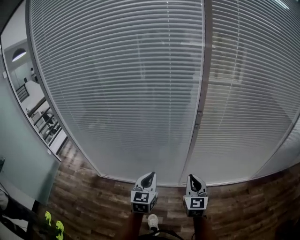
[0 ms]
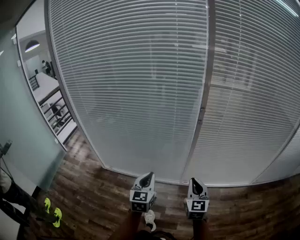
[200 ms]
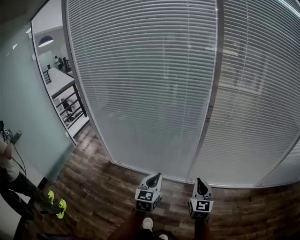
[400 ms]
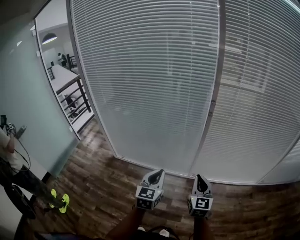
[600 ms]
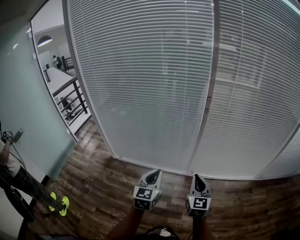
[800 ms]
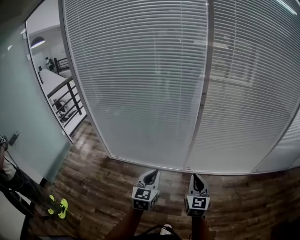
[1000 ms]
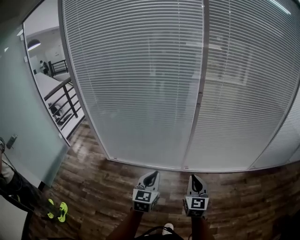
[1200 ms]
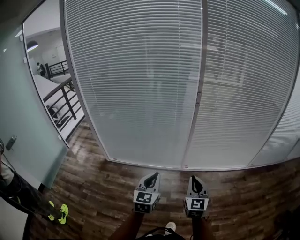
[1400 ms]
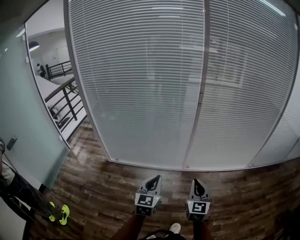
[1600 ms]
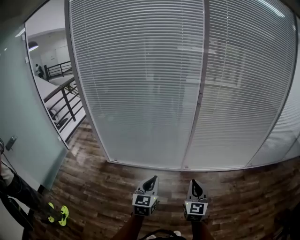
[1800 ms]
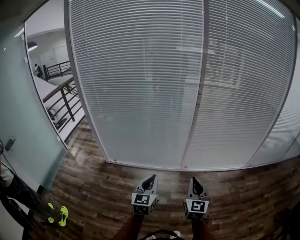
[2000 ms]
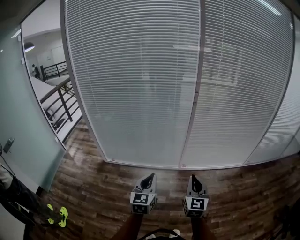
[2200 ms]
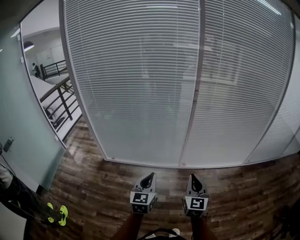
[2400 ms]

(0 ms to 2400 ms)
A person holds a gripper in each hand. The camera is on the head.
0 ms - 1200 ms: Both grippers move backward, about 25 cm.
1200 ms - 2400 ms: Both grippers move backward, approximately 5 cm.

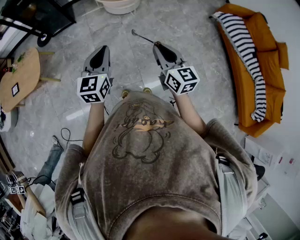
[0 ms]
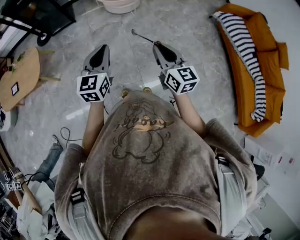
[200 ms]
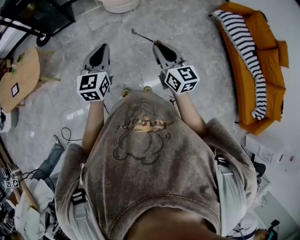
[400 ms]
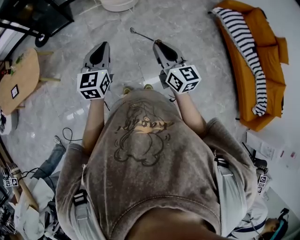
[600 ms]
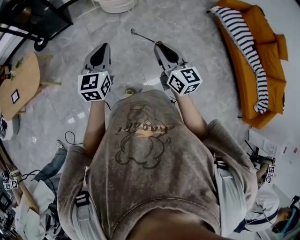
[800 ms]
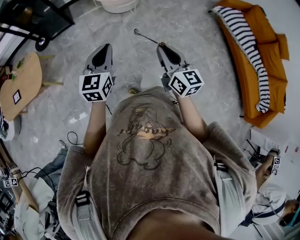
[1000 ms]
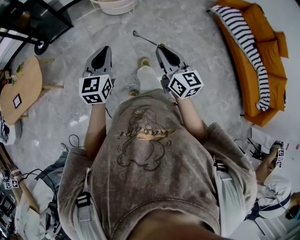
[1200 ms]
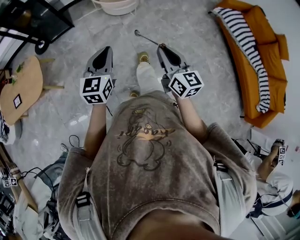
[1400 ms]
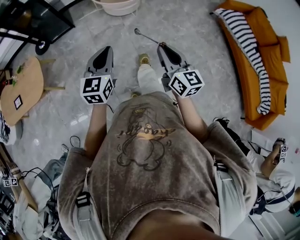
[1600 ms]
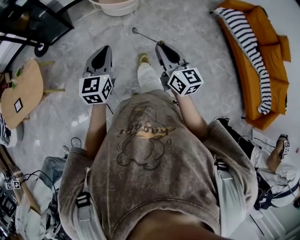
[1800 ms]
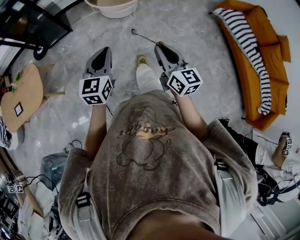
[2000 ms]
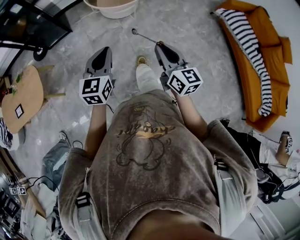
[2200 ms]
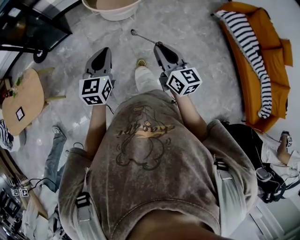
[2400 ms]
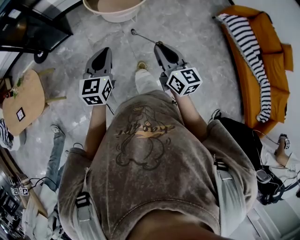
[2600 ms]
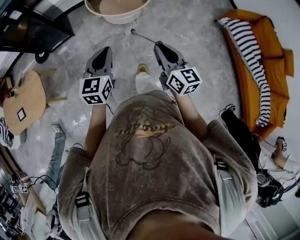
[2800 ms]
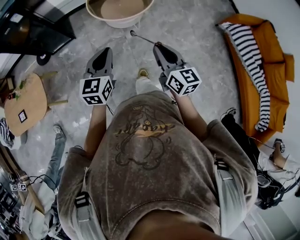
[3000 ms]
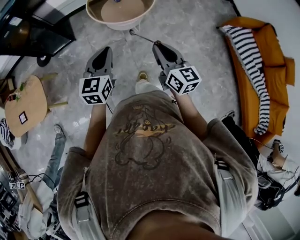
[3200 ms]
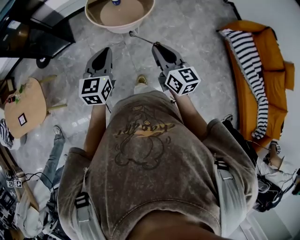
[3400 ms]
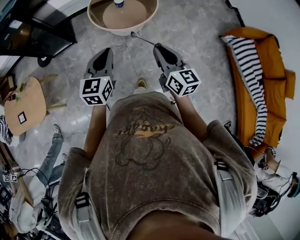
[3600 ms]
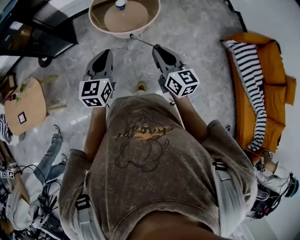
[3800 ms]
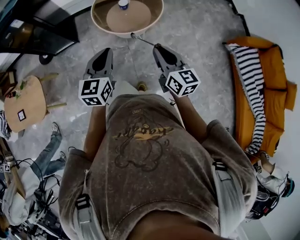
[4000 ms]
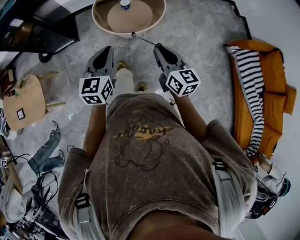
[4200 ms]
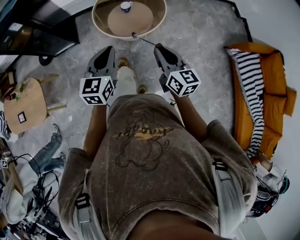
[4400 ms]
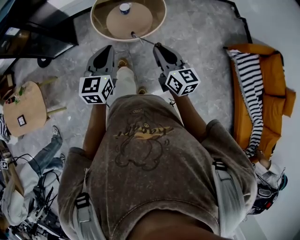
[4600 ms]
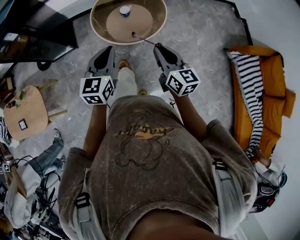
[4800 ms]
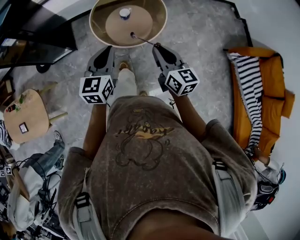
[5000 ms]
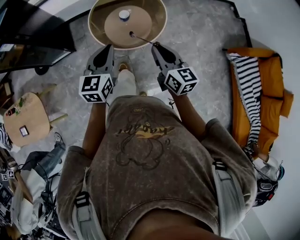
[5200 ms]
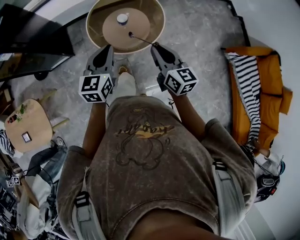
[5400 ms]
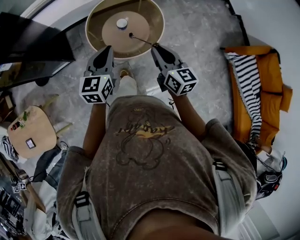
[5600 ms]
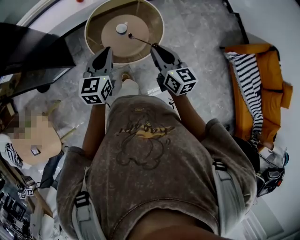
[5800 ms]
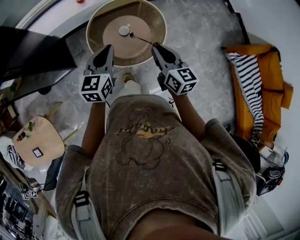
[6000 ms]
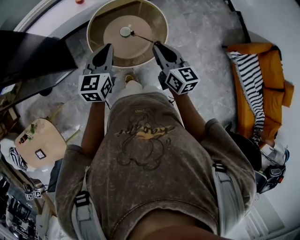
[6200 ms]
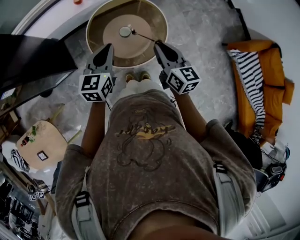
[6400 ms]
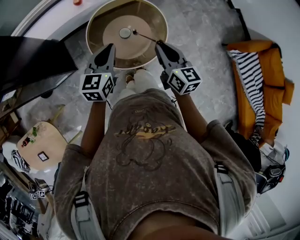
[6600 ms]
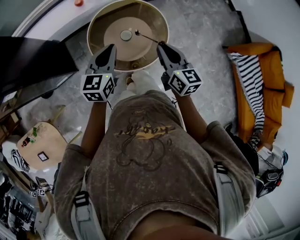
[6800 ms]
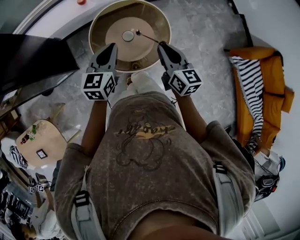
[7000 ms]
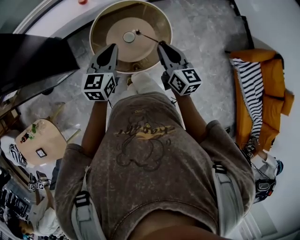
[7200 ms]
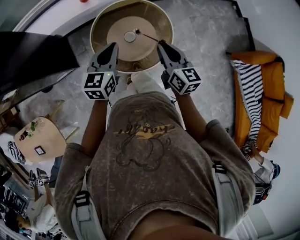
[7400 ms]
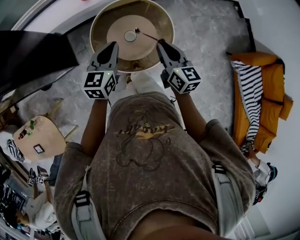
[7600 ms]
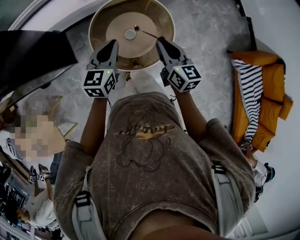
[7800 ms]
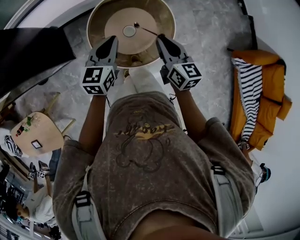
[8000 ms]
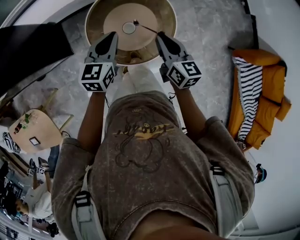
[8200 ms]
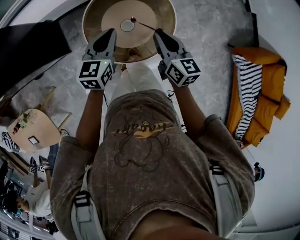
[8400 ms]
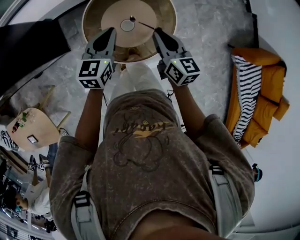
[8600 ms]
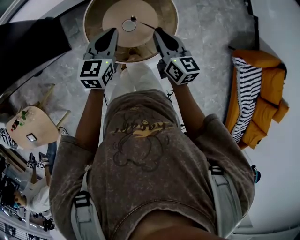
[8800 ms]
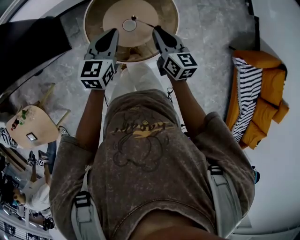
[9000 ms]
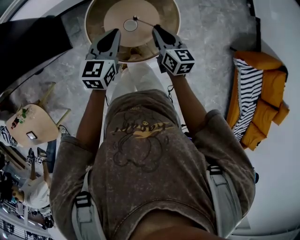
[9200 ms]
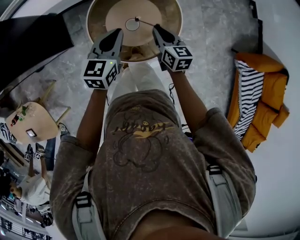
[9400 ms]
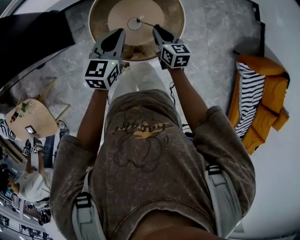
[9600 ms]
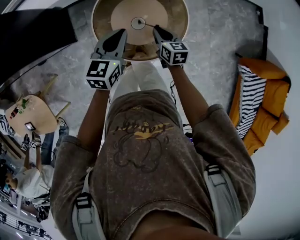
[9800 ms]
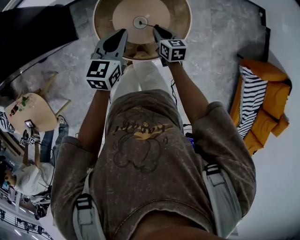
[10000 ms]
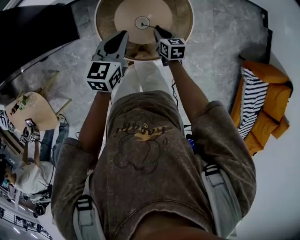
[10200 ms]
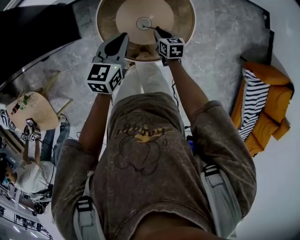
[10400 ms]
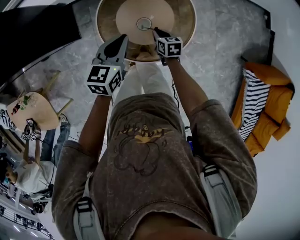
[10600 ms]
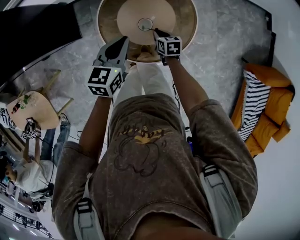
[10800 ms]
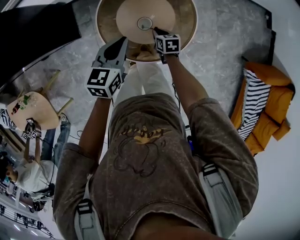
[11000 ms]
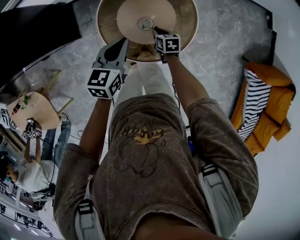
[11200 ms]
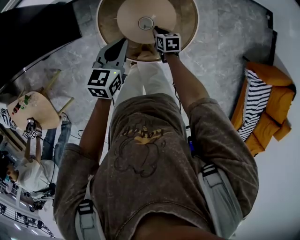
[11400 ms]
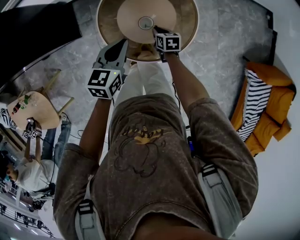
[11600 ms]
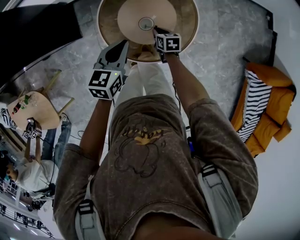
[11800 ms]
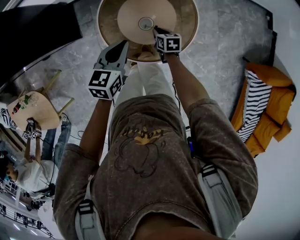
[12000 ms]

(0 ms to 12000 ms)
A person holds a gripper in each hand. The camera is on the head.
0 ms - 1600 ms: The left gripper travels forward and to the left by some 10 cm, while the right gripper travels to the left and forward by roughly 10 cm.
1600 ms - 3000 ms: The grippers both shift forward by roughly 20 cm.
3000 ms - 4400 ms: The two grippers go approximately 15 cm forward.
4400 ms - 6000 ms: Both grippers move forward, some 30 cm.
6000 ms - 7600 ms: The grippers both shift forward by roughly 10 cm.
7600 ms - 9000 ms: The left gripper moves downward, about 5 cm, while the right gripper shifts some 10 cm downward and forward.
9000 ms - 10400 ms: The right gripper is displaced downward by approximately 20 cm, and turns by approximately 30 degrees.
10400 ms - 12000 ms: The grippers make only small movements.

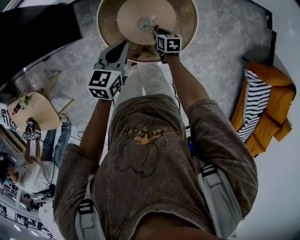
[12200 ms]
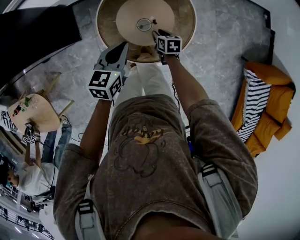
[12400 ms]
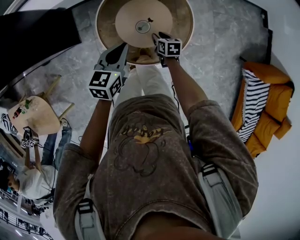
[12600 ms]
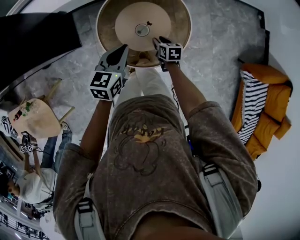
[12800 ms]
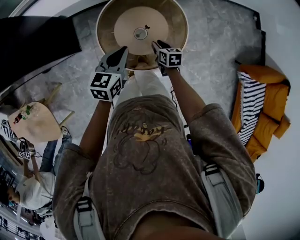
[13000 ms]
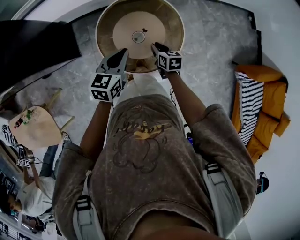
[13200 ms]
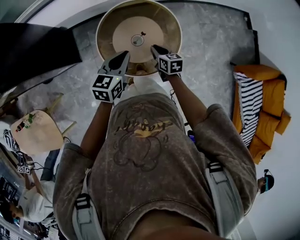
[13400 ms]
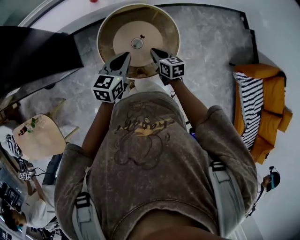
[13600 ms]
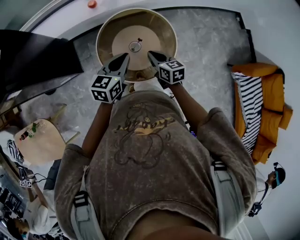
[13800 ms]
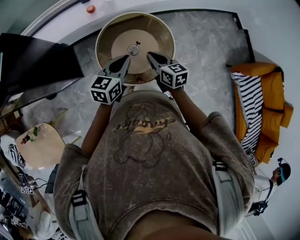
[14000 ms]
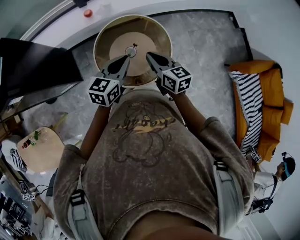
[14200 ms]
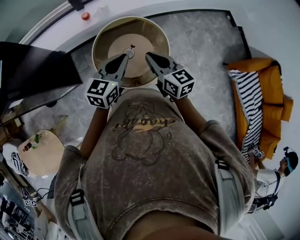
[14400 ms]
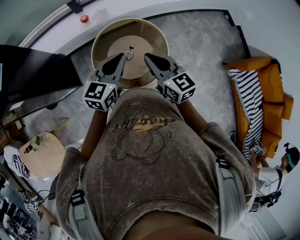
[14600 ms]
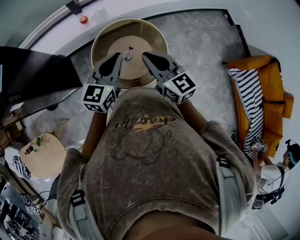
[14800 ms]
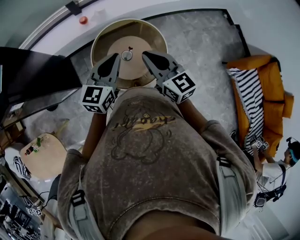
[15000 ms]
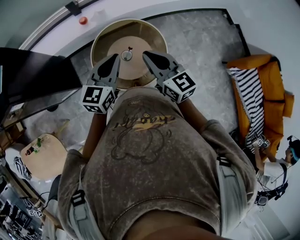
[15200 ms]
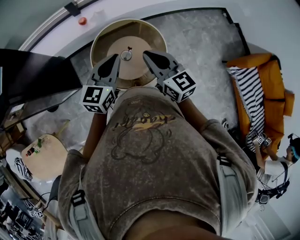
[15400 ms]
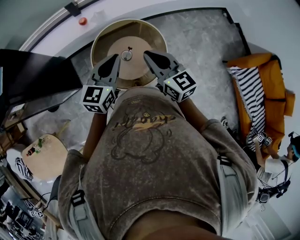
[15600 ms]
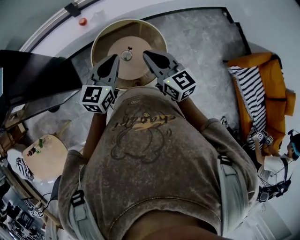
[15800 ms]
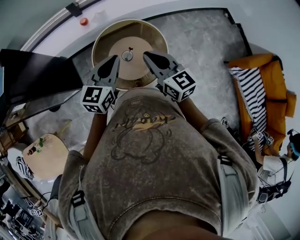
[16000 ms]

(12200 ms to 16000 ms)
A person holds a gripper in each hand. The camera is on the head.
12200 ms - 13400 ms: The right gripper heads upward, covering some 15 cm. The left gripper heads upward, covering approximately 5 cm.
13400 ms - 14800 ms: The left gripper goes approximately 15 cm upward, and turns by approximately 20 degrees. The right gripper heads upward, covering approximately 30 cm, and tilts its fingers approximately 30 degrees upward.
14800 ms - 16000 ms: There are only small adjustments of the grippers.

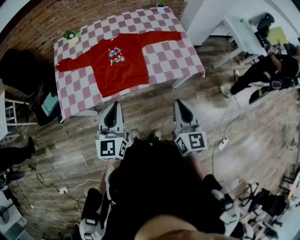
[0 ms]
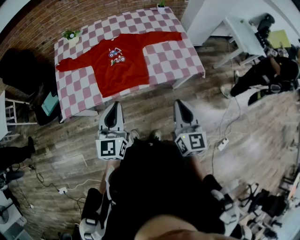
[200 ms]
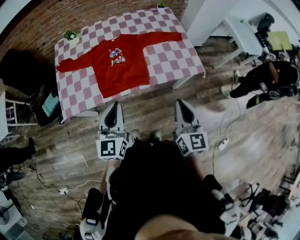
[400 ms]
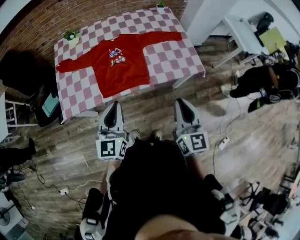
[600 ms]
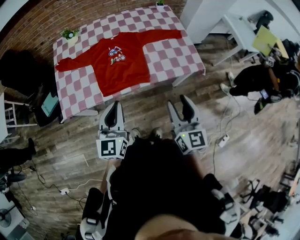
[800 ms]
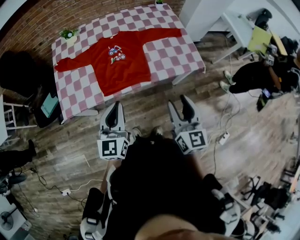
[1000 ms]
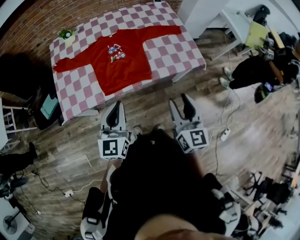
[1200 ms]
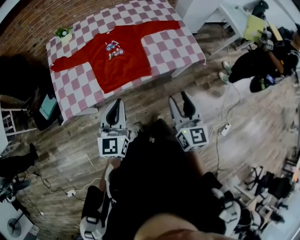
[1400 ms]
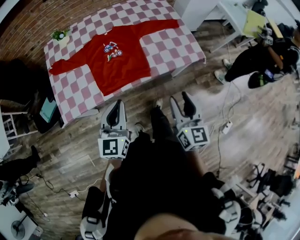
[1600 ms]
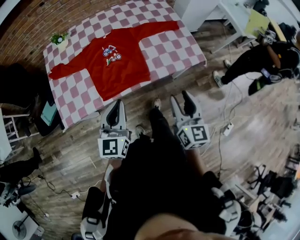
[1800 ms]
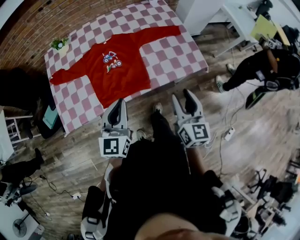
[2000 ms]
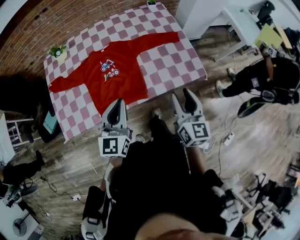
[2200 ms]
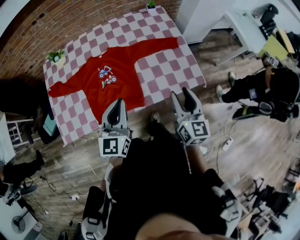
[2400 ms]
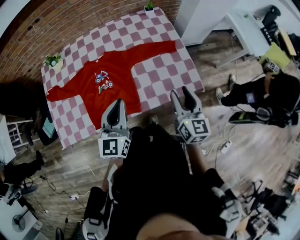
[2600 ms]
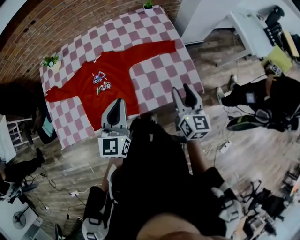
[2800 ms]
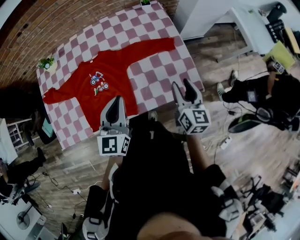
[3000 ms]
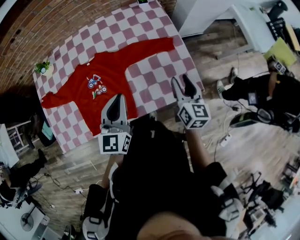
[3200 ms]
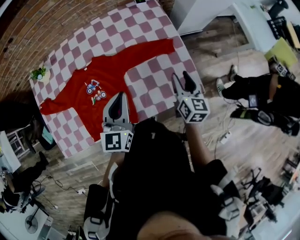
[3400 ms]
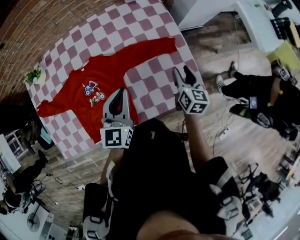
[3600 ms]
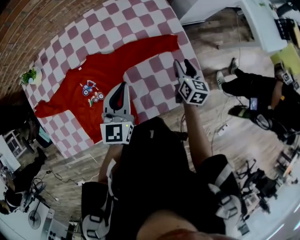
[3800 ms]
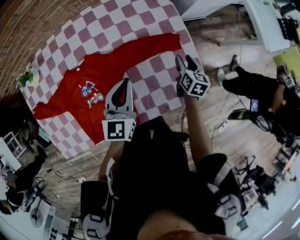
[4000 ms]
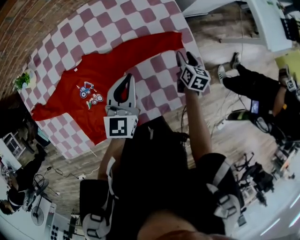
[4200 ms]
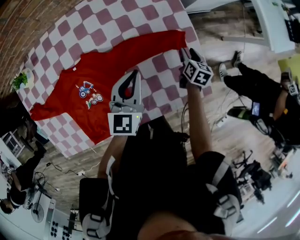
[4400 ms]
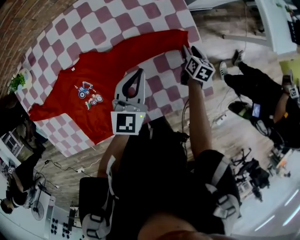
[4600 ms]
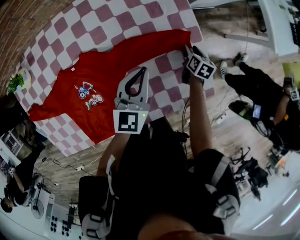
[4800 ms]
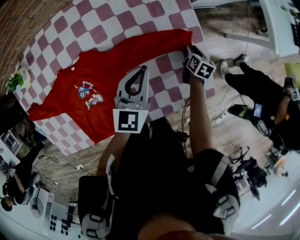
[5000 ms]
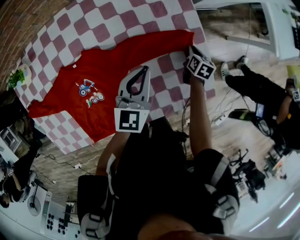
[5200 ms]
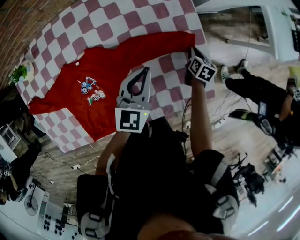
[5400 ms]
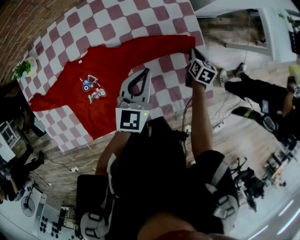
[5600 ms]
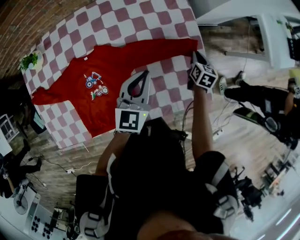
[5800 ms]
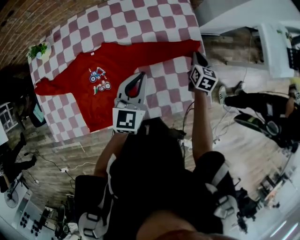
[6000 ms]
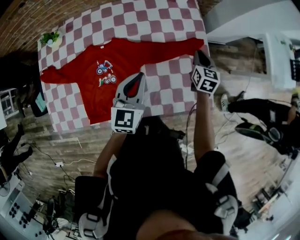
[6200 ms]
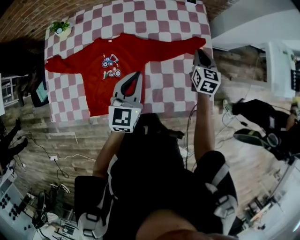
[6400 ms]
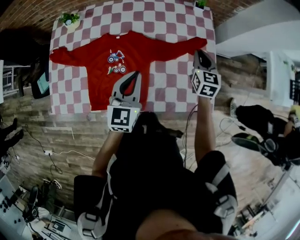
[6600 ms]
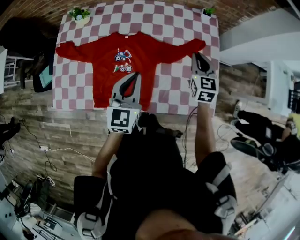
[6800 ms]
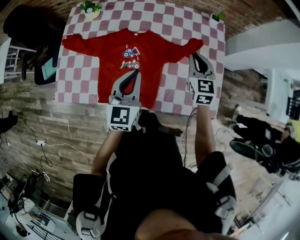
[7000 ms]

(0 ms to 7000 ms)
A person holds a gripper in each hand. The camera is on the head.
0 ms - 1400 ms: The right gripper moves approximately 5 cm, and opens.
1400 ms - 2800 ms: Both grippers travel together forward and to the right, approximately 35 cm.
2800 ms - 4200 ms: Both grippers move forward and downward, approximately 35 cm. The right gripper changes its angle by approximately 30 degrees.
4200 ms - 5600 ms: The right gripper closes.
5600 ms - 7000 ms: The left gripper ends up about 30 cm from where it was, and swivels some 30 degrees. The right gripper changes place by roughly 40 cm, and turns by roughly 60 degrees.
